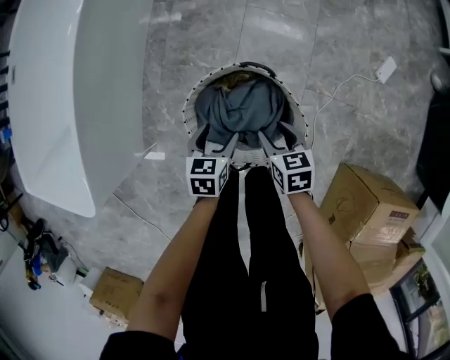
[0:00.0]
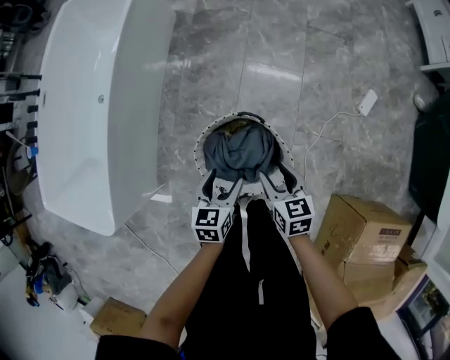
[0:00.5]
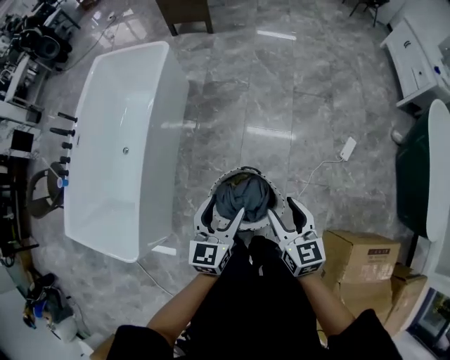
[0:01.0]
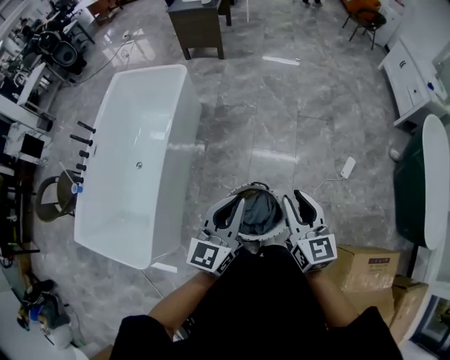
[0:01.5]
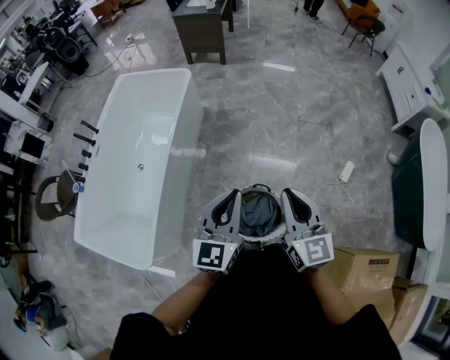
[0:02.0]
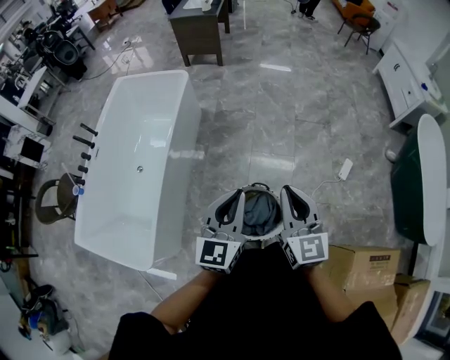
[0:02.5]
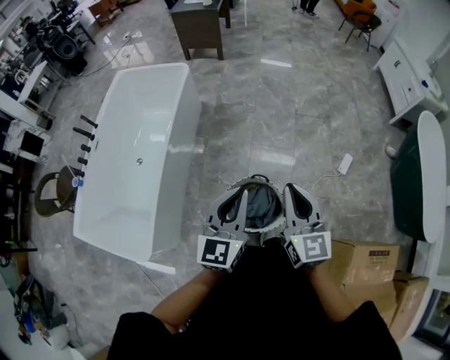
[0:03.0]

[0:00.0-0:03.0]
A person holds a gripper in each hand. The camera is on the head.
0:00.0 to 0:01.5: The grippers both shift upward by some 60 cm. The right gripper tilts its fingers about 40 degrees upward; the left gripper angles its fingers upward, by some 50 degrees, and closes up.
0:01.5 to 0:03.0: The right gripper moves approximately 5 cm, and closes its fingers. Meanwhile the left gripper changes place by some 5 cm.

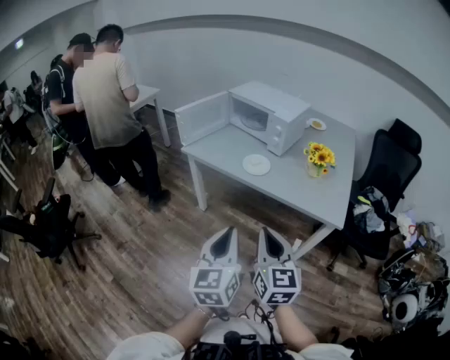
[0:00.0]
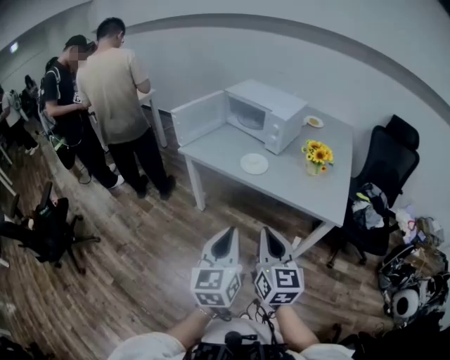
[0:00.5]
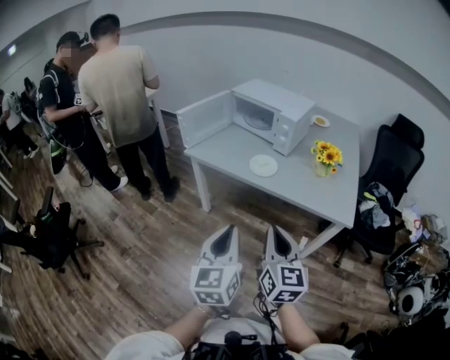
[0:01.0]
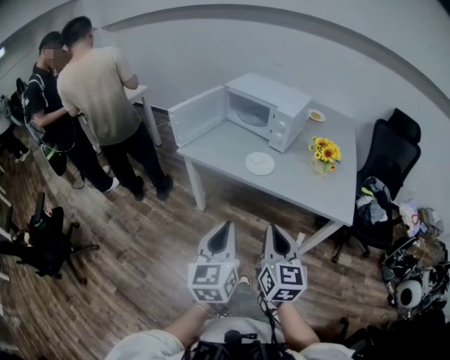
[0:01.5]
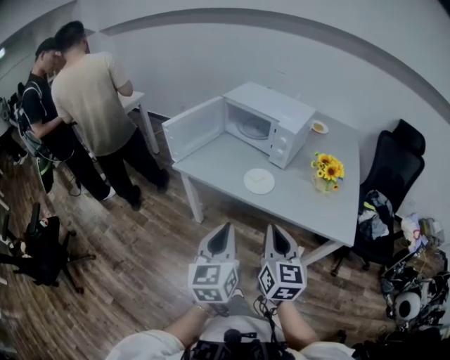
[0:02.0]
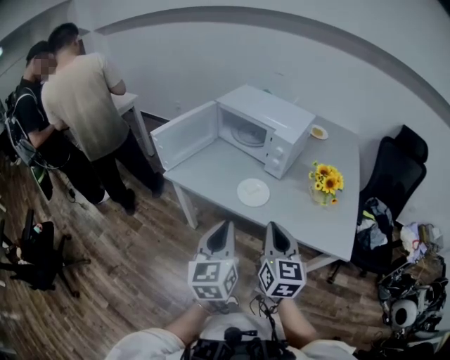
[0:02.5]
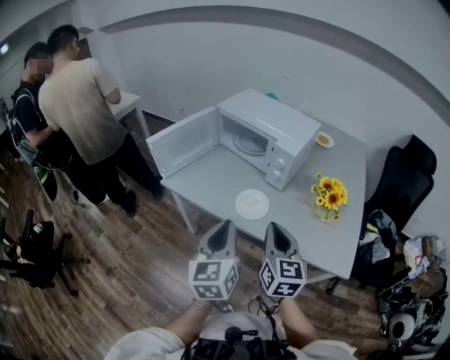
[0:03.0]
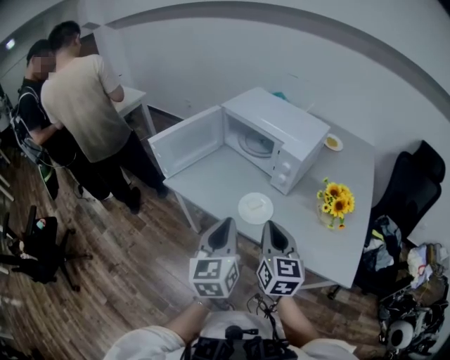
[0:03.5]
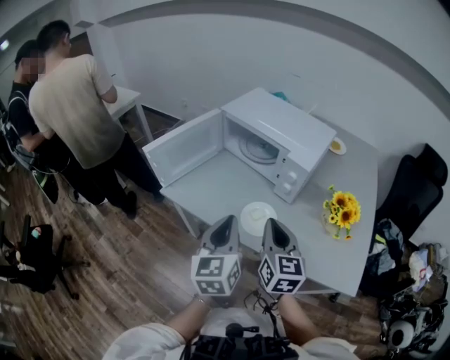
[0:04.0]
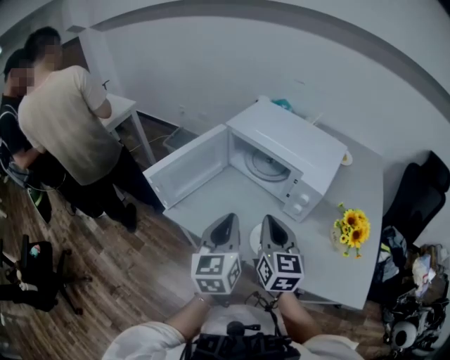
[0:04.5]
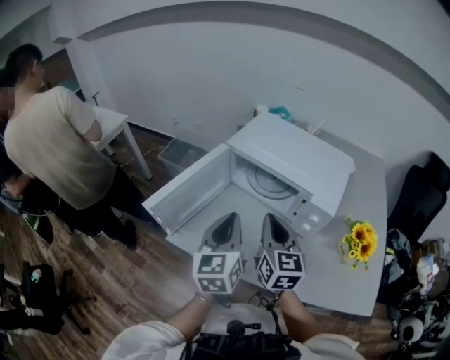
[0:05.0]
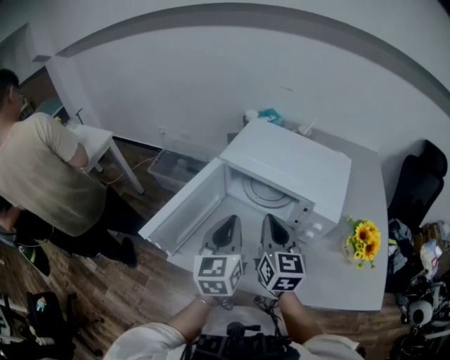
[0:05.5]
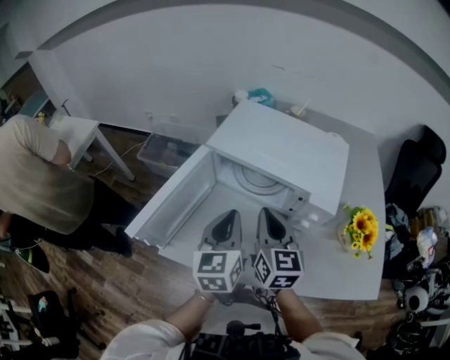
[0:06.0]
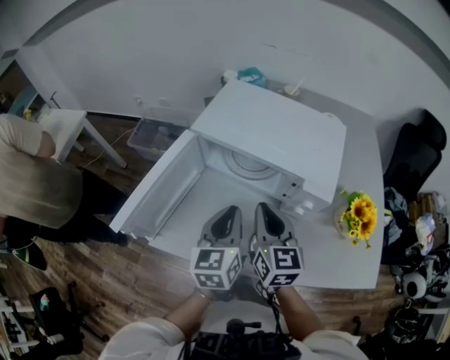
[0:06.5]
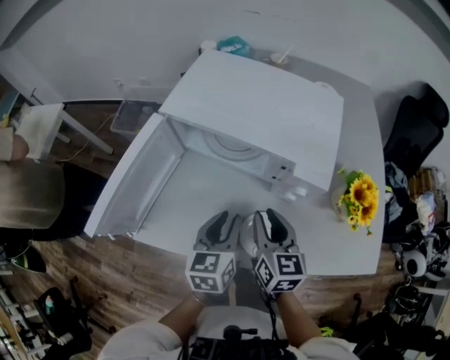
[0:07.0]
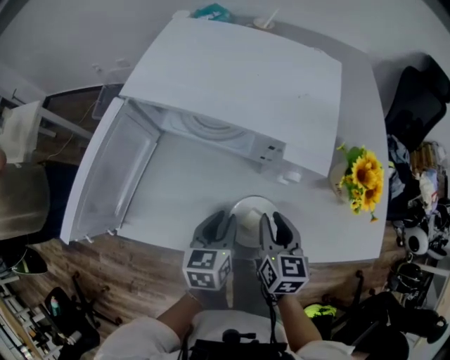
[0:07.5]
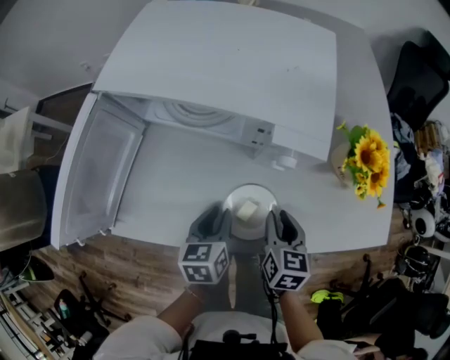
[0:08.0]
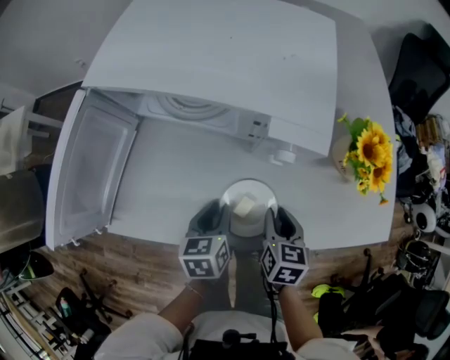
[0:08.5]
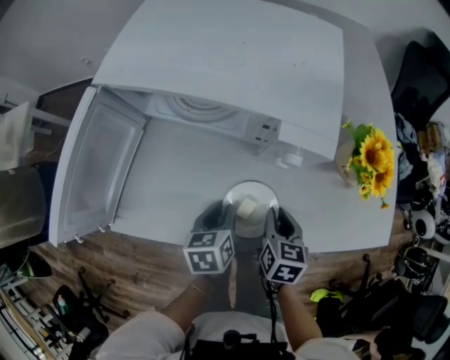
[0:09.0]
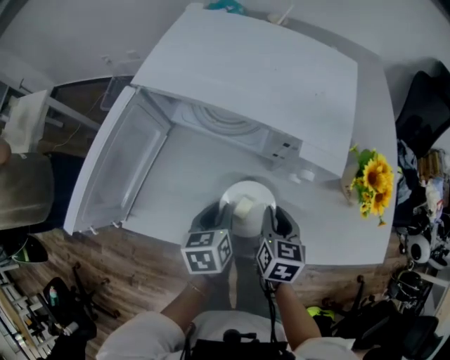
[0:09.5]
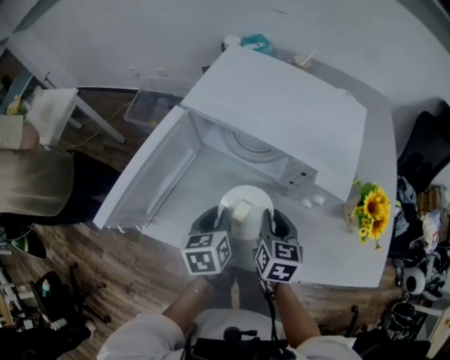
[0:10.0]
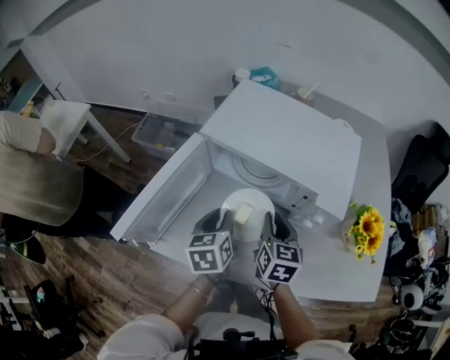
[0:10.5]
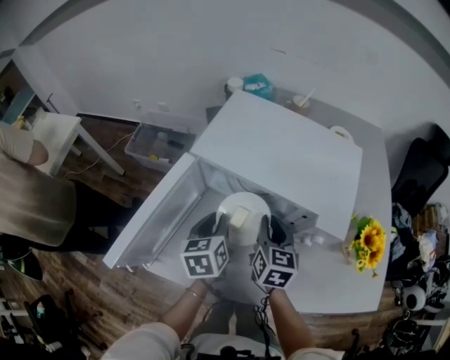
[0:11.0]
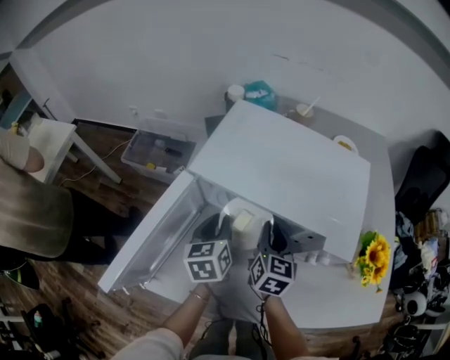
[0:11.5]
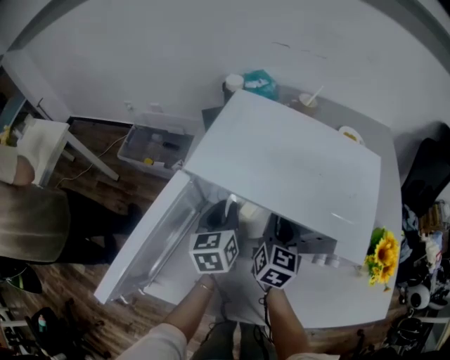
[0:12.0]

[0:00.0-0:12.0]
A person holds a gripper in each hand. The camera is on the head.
0:00.0 to 0:02.0: Both grippers travel together forward, approximately 15 cm.
0:02.0 to 0:04.0: Both grippers move forward, roughly 25 cm.
0:04.0 to 0:06.0: The left gripper heads forward, covering approximately 25 cm. Meanwhile the right gripper moves forward and to the left, approximately 25 cm.
0:06.0 to 0:08.0: Both grippers travel together downward and to the right, about 30 cm. The left gripper rotates some 30 degrees, and opens. The right gripper tilts its fingers about 30 degrees downward, and opens its fingers.
0:08.0 to 0:10.0: The right gripper goes roughly 15 cm to the left, upward and forward. Meanwhile the left gripper goes about 15 cm to the left and upward.
0:10.0 to 0:12.0: The grippers both shift forward by approximately 20 cm. The right gripper turns by some 20 degrees.

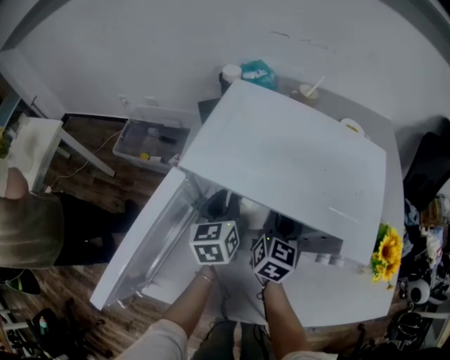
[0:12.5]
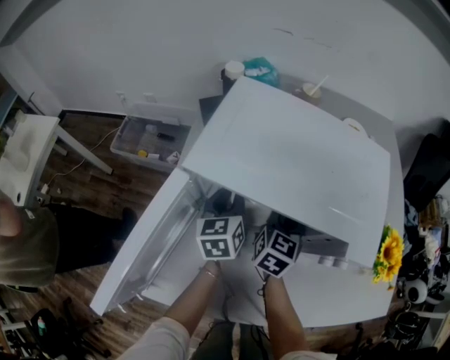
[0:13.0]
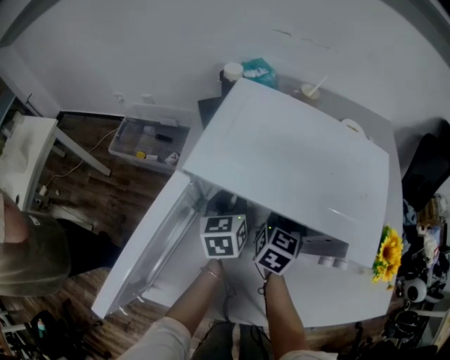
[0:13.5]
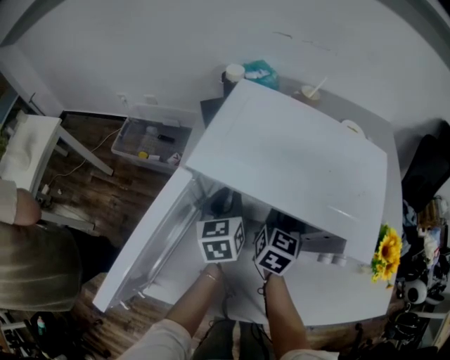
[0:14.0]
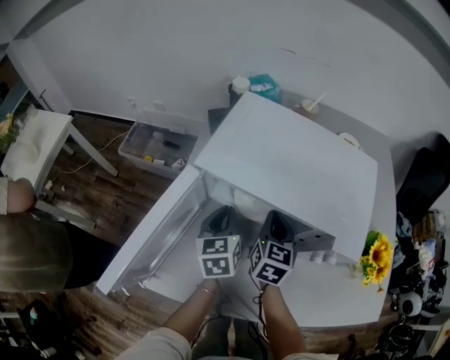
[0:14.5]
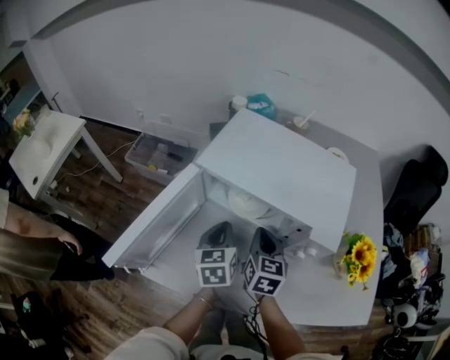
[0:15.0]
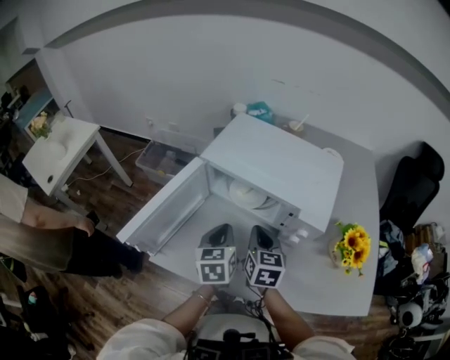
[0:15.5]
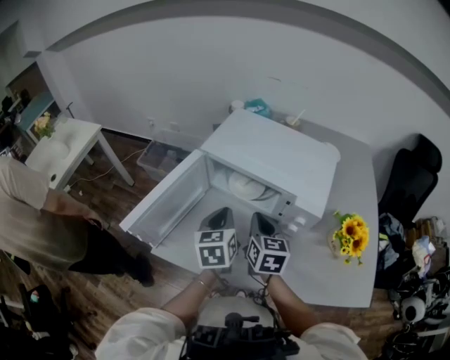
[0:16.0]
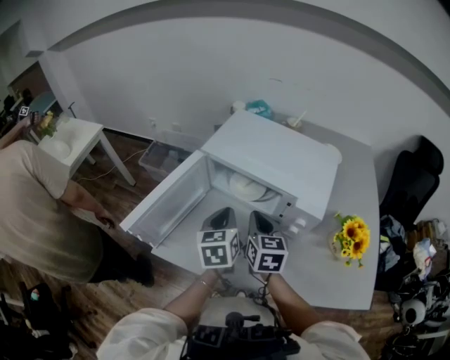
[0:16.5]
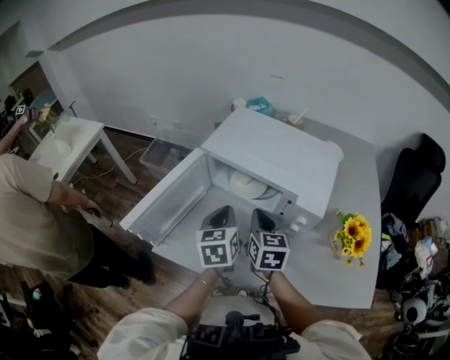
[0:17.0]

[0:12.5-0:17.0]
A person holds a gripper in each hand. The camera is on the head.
0:12.5 to 0:14.5: The left gripper travels backward by approximately 5 cm.
0:14.5 to 0:17.0: The grippers both shift backward and upward by some 15 cm. The right gripper swivels approximately 20 degrees.

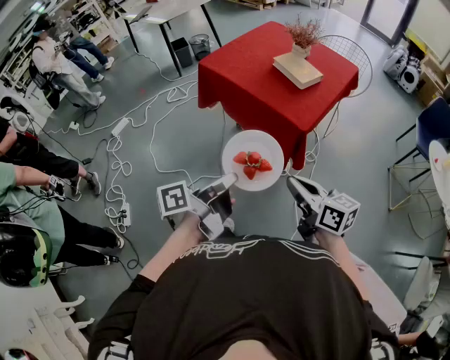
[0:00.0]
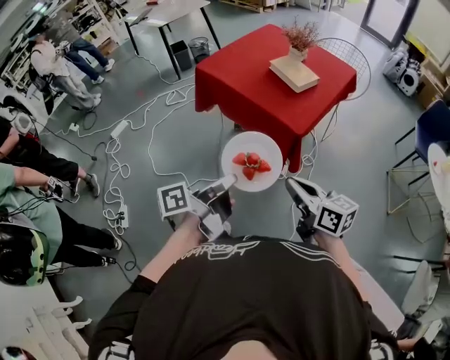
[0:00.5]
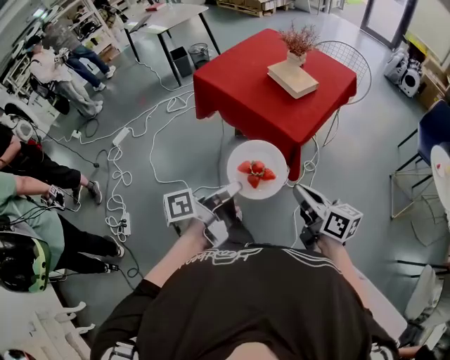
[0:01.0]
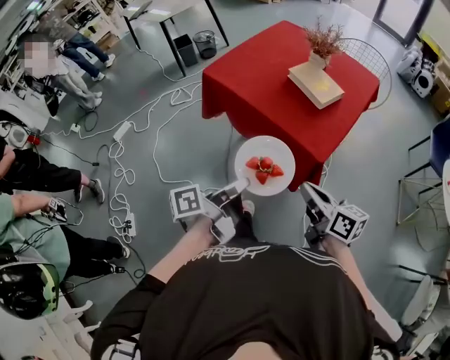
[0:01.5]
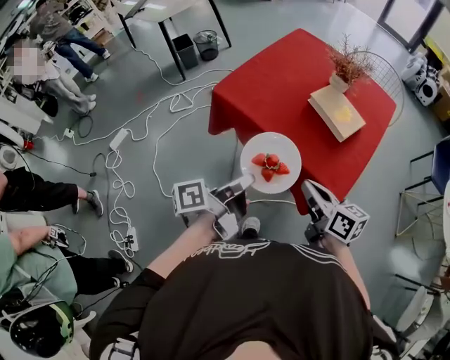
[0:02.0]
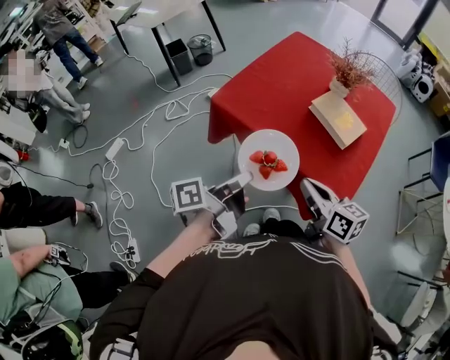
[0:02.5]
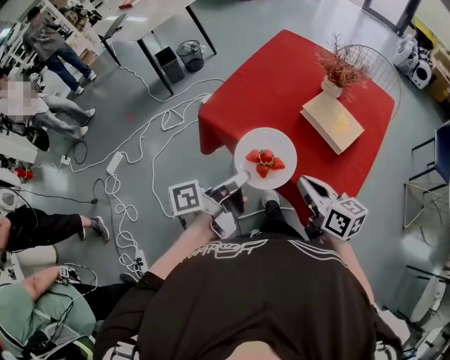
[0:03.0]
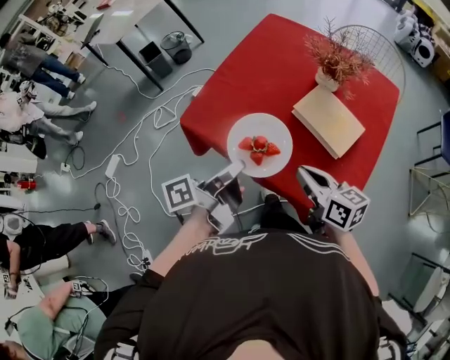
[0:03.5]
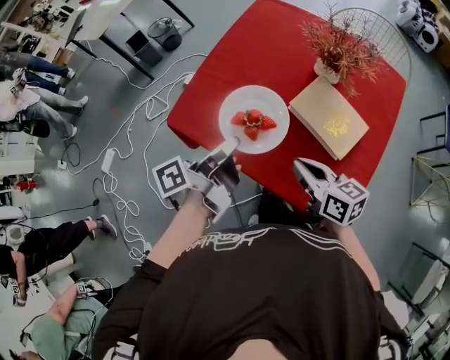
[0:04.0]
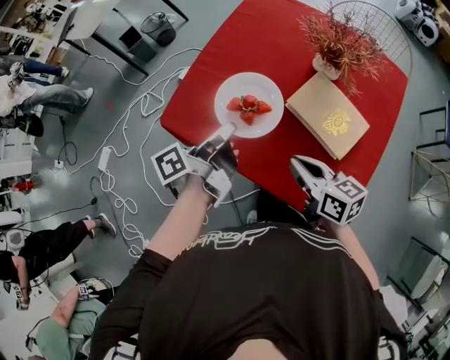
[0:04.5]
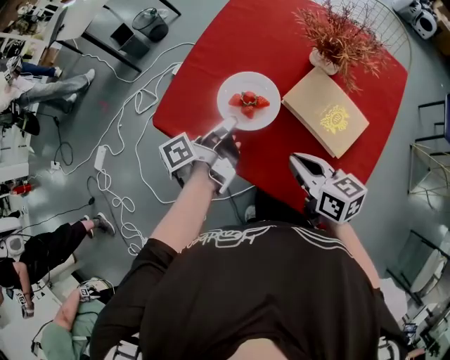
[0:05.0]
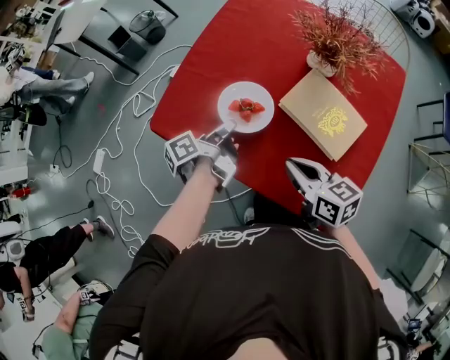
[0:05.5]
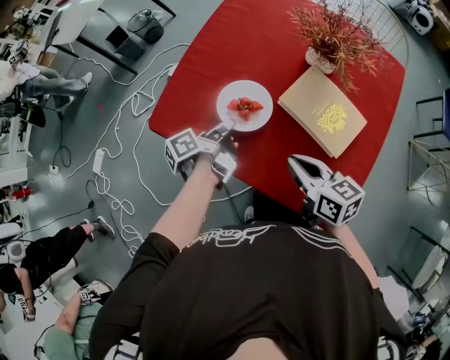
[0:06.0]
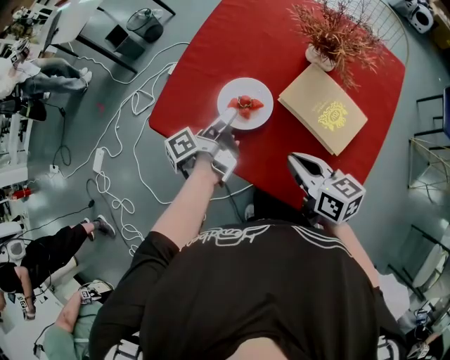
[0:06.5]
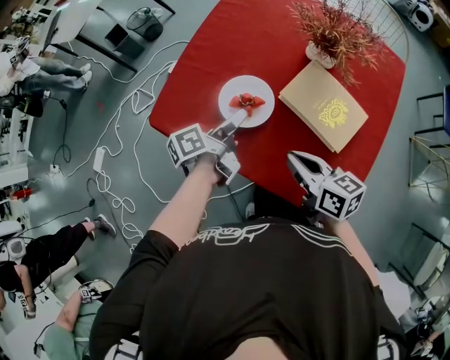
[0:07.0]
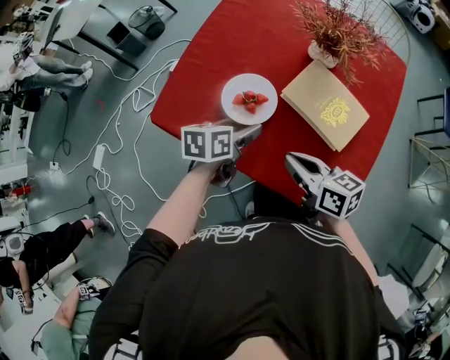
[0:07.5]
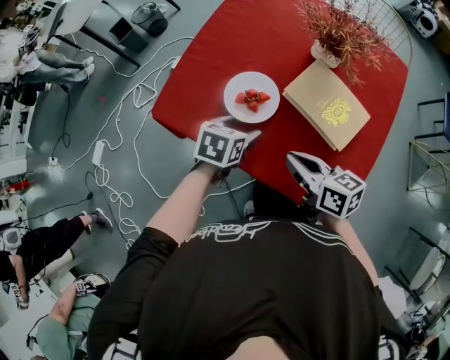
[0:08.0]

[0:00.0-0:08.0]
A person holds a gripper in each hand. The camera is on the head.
0:00.0 to 0:02.0: Both grippers travel together forward, about 30 cm.
0:02.0 to 0:04.0: Both grippers travel together forward, some 25 cm.
0:04.0 to 0:06.0: The left gripper heads downward and forward, covering approximately 15 cm.
0:06.0 to 0:08.0: The left gripper shifts by about 5 cm, rotates around the line of its fingers by some 70 degrees, clockwise from behind, and opens up.
